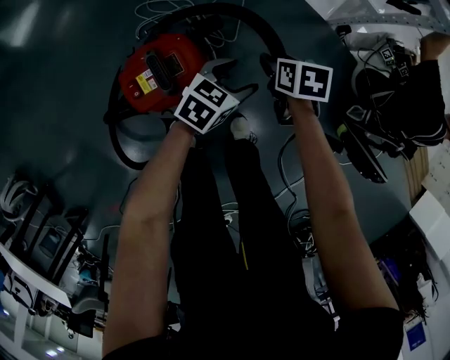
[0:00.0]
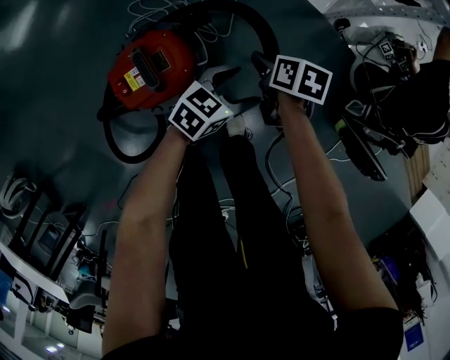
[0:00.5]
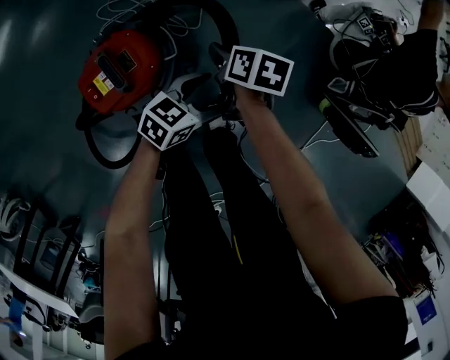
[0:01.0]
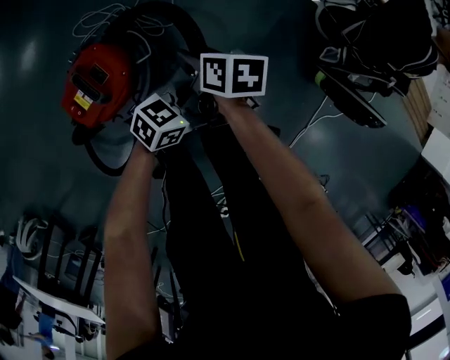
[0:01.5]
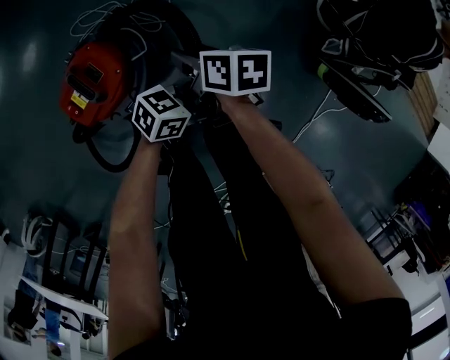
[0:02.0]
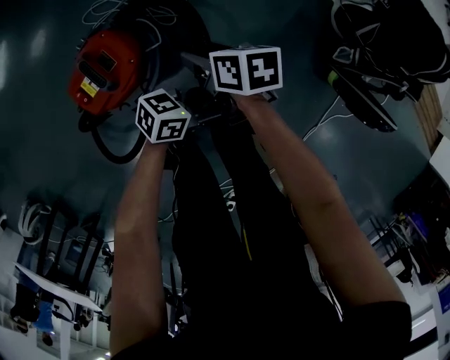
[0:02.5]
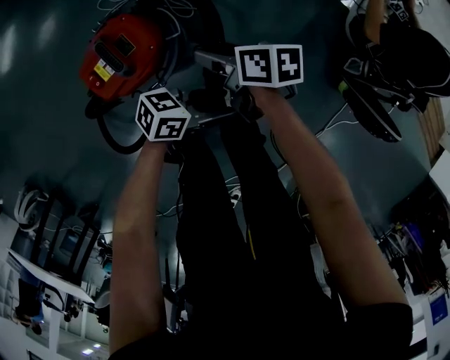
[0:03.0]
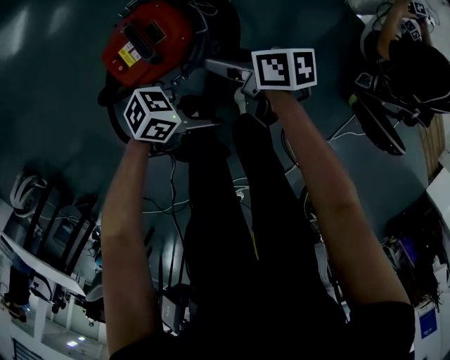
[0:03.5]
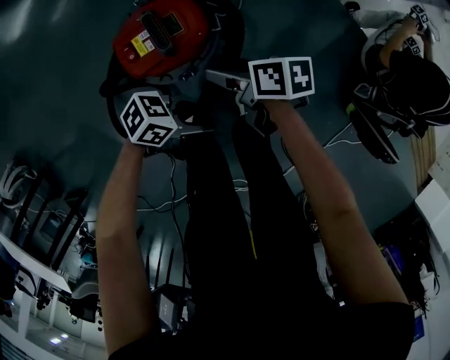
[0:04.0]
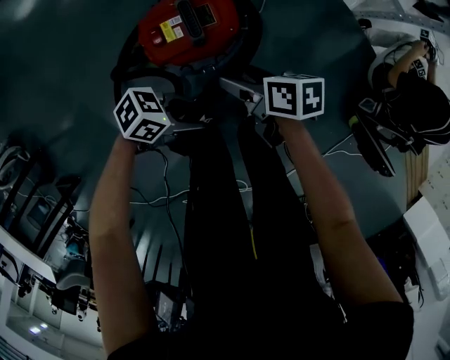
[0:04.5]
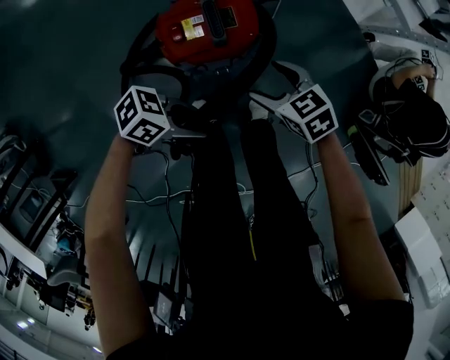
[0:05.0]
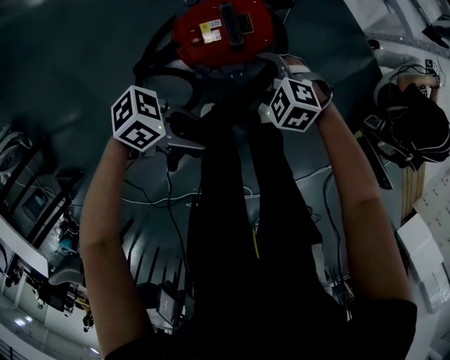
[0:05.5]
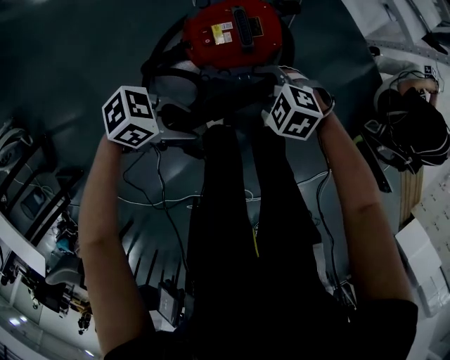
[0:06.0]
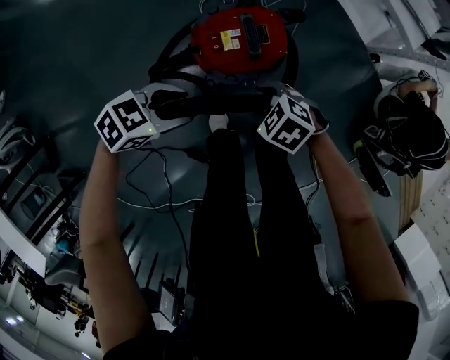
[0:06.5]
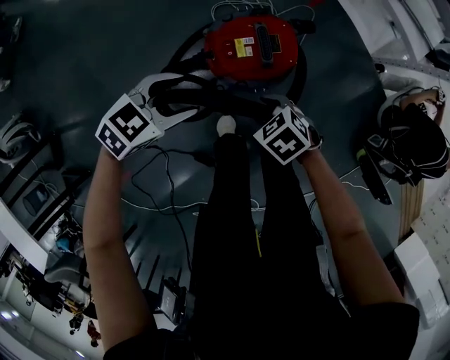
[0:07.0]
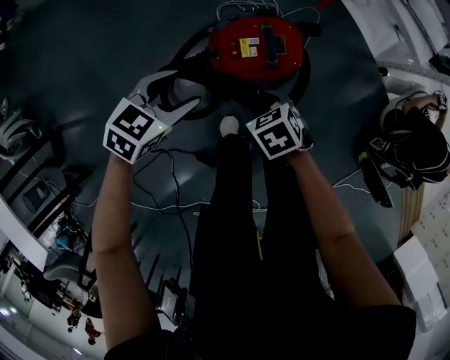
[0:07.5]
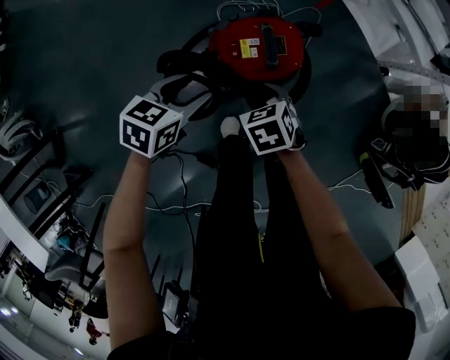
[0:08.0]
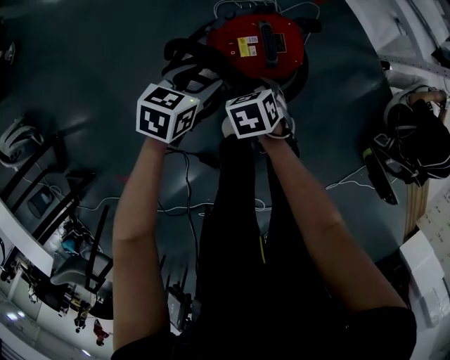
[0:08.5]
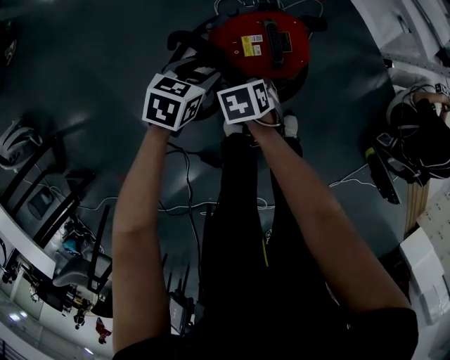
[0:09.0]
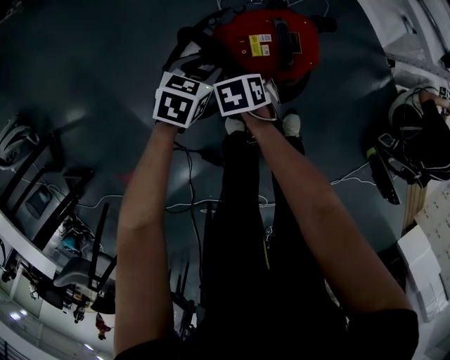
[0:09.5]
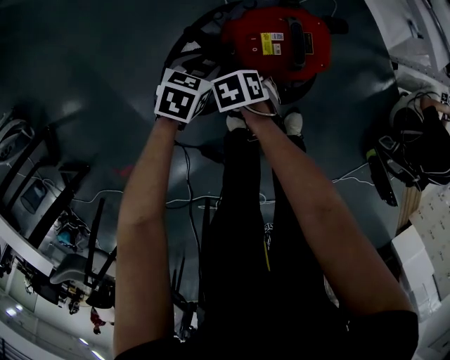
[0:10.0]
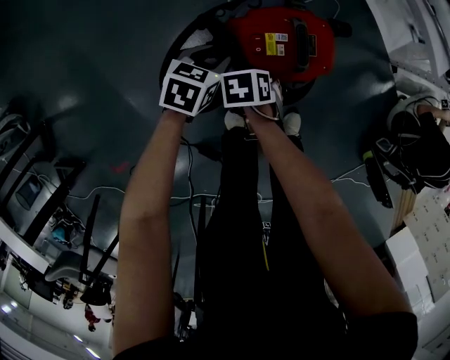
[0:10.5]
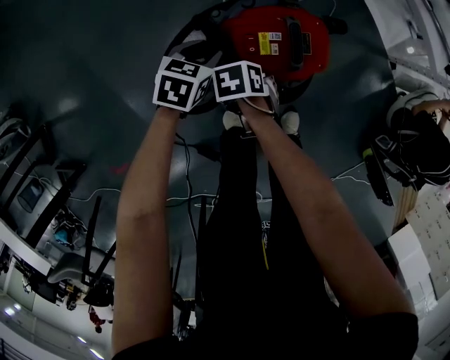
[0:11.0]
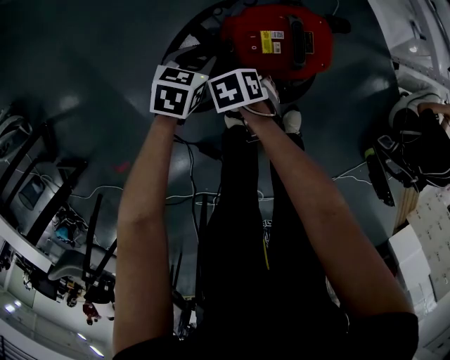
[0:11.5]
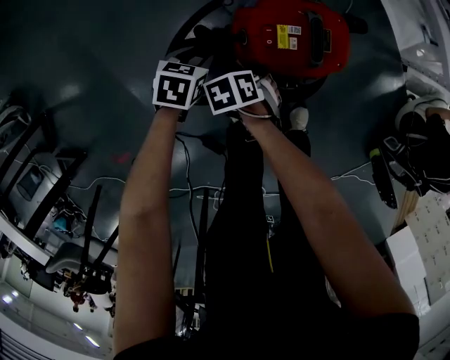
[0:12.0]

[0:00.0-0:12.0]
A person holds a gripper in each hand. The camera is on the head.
0:00.0 to 0:02.0: The right gripper moves roughly 10 cm, and changes its angle by roughly 30 degrees; the left gripper changes place by about 20 cm, and turns by roughly 30 degrees.
0:02.0 to 0:04.0: The left gripper changes place by some 20 cm. The right gripper moves approximately 15 cm, changes its angle by about 30 degrees, and opens up.
0:04.0 to 0:06.0: The right gripper shifts by some 10 cm, rotates around the line of its fingers by roughly 90 degrees, counterclockwise from behind, and closes up, while the left gripper changes place by some 20 cm.
0:06.0 to 0:08.0: The right gripper ends up about 5 cm from where it was, and twists roughly 40 degrees clockwise, seen from behind. The left gripper moves roughly 15 cm, and swivels roughly 50 degrees.
0:08.0 to 0:10.0: The grippers both shift downward by about 15 cm. The right gripper rotates some 20 degrees.
0:10.0 to 0:12.0: The left gripper changes place by about 5 cm.

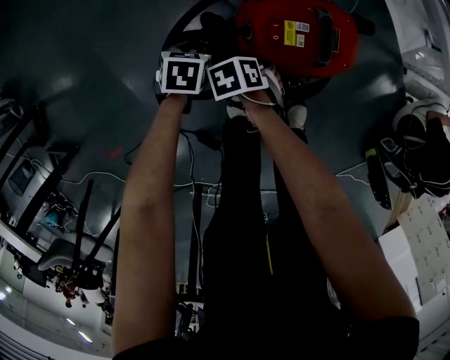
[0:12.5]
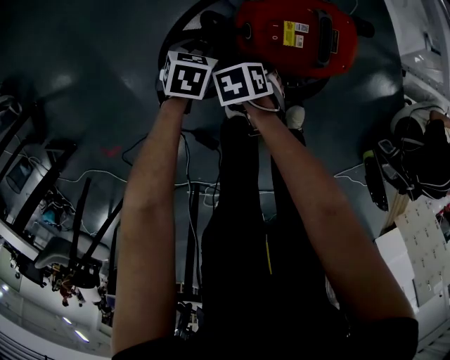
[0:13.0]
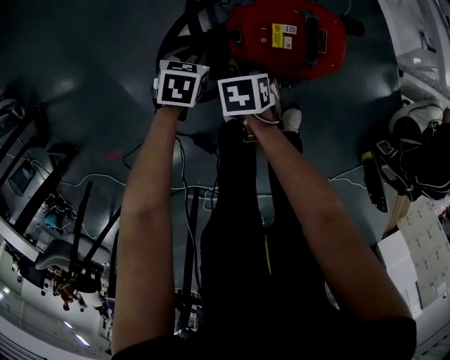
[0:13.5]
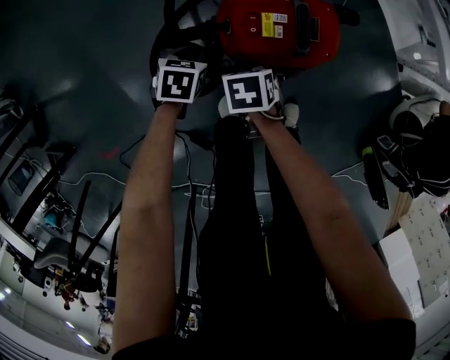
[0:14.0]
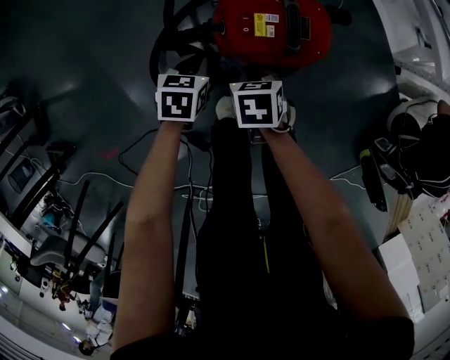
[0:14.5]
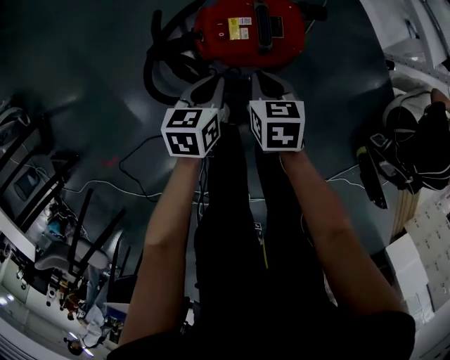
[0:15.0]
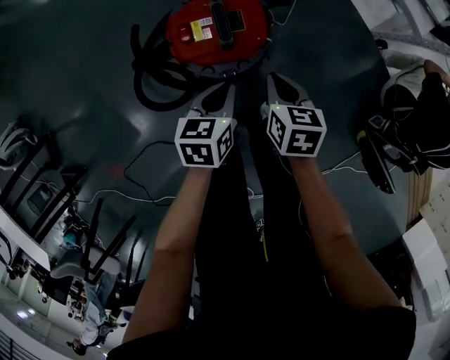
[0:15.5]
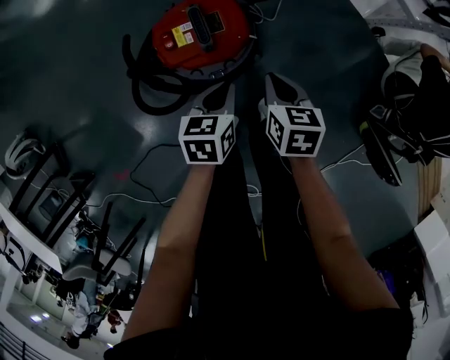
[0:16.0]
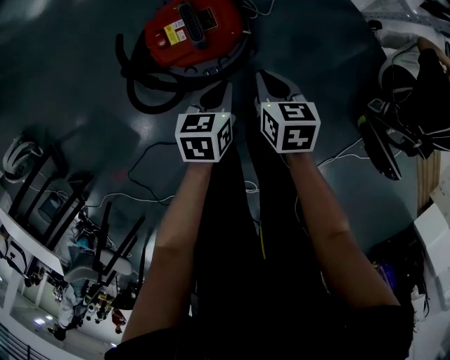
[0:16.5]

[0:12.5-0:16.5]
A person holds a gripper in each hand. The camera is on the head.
0:12.5 to 0:14.5: The left gripper ends up some 10 cm from where it was, while the right gripper moves upward, approximately 10 cm, rotates approximately 30 degrees, and closes up.
0:14.5 to 0:16.5: The left gripper heads to the right, covering some 25 cm. The right gripper travels to the right and upward by roughly 25 cm, and swivels about 30 degrees.

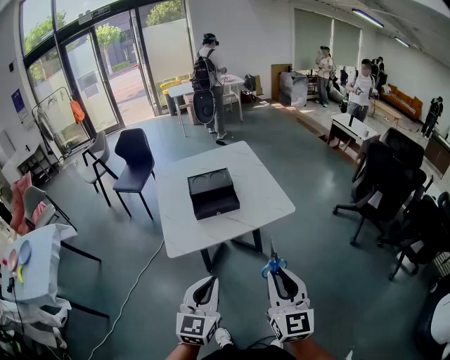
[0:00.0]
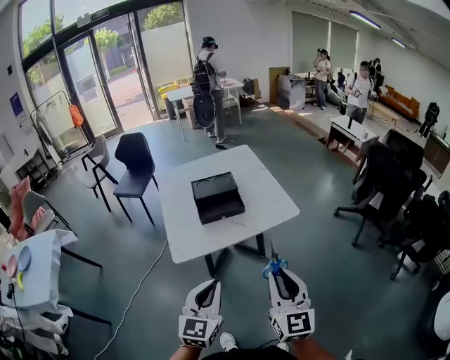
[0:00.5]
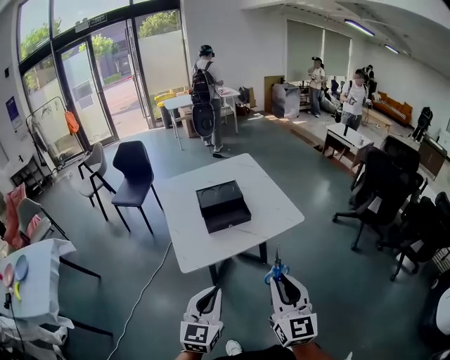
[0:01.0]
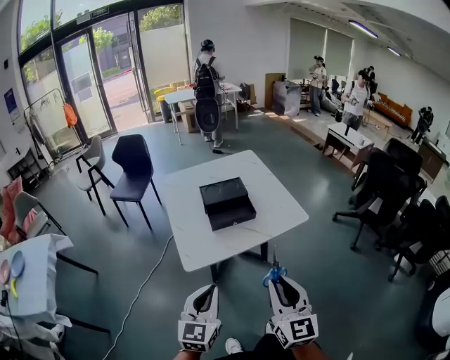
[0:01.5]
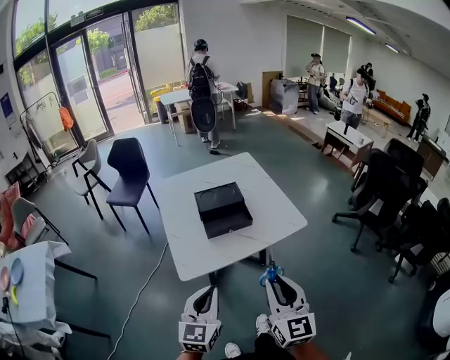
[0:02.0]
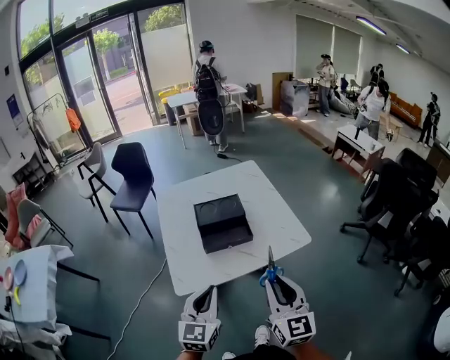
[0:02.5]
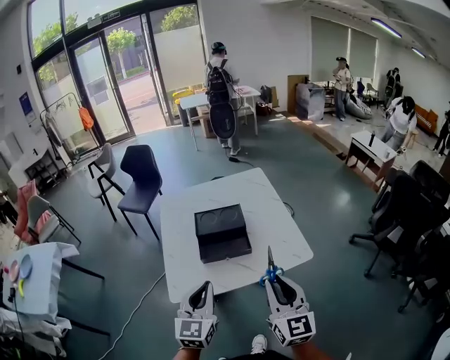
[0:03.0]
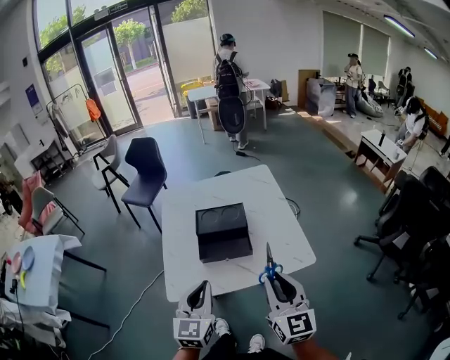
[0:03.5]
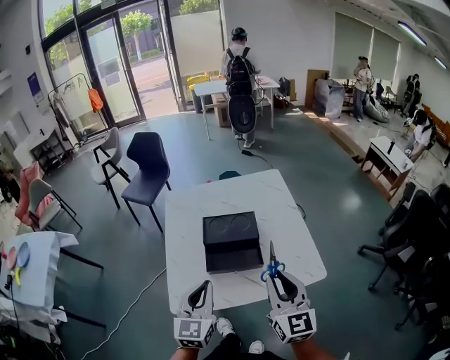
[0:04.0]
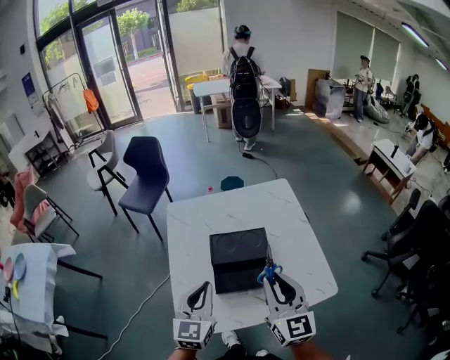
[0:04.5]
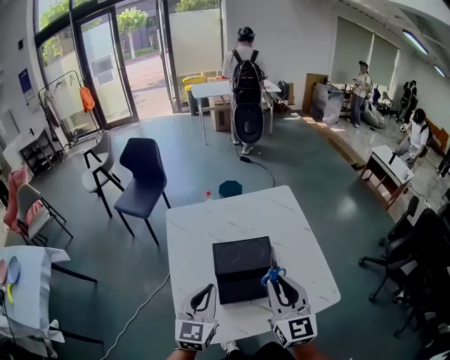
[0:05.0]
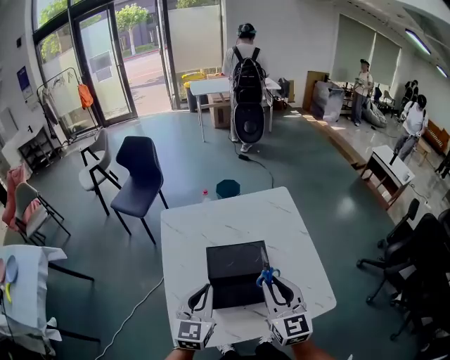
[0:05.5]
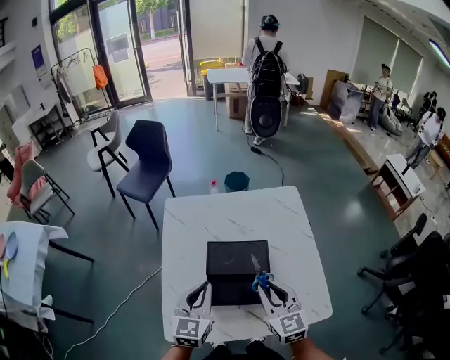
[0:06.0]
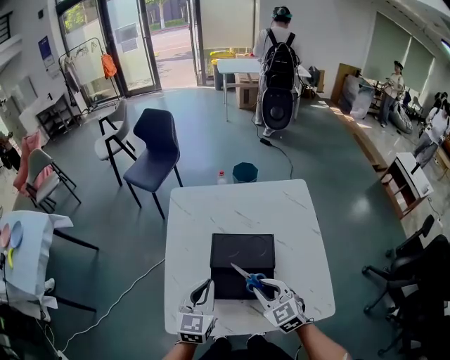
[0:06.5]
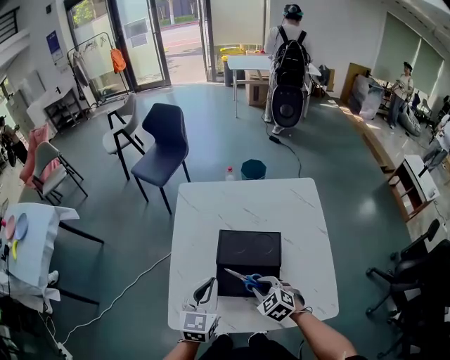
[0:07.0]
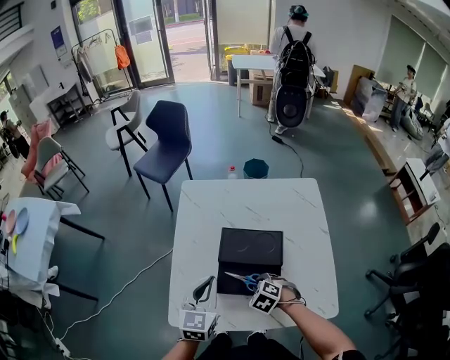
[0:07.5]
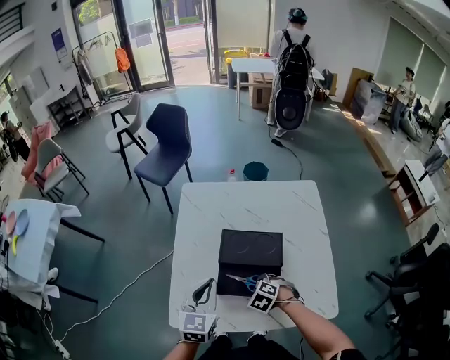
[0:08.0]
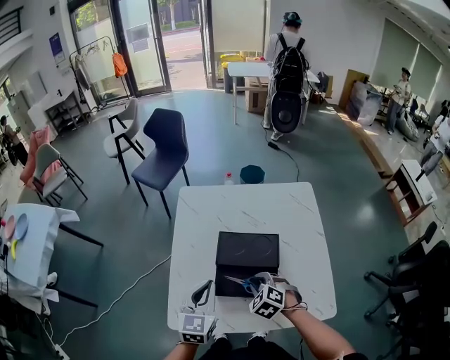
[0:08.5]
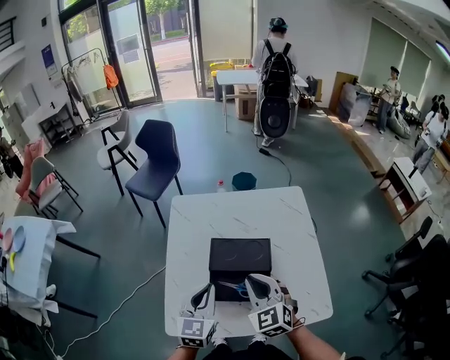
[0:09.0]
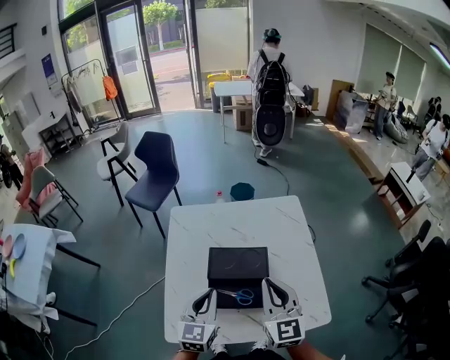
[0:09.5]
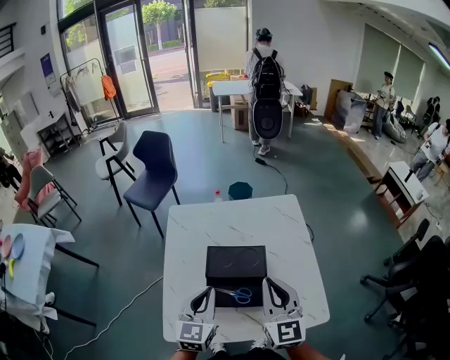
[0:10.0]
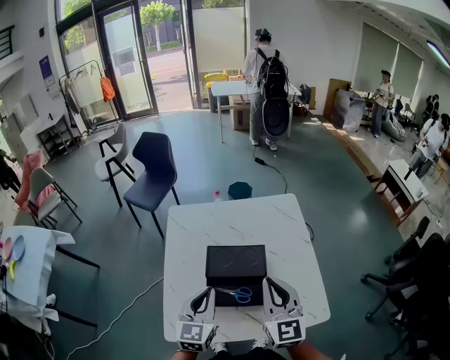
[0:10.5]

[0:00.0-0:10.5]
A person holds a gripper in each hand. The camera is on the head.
0:00.0 to 0:02.0: Both grippers travel together to the left and forward, roughly 10 cm.
0:02.0 to 0:04.0: The grippers both shift forward by some 25 cm.
0:04.0 to 0:06.5: The left gripper shifts about 15 cm forward and downward. Meanwhile the right gripper goes approximately 25 cm downward, forward and to the left, and tips its fingers downward by approximately 30 degrees.
0:06.5 to 0:08.5: The right gripper shifts approximately 5 cm downward, and rotates some 30 degrees.
0:08.5 to 0:10.5: The right gripper is displaced upward by approximately 20 cm, points its fingers approximately 60 degrees further upward, and closes its fingers; the left gripper shifts by about 5 cm.
